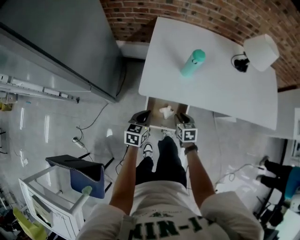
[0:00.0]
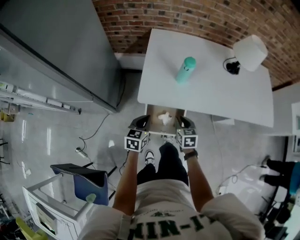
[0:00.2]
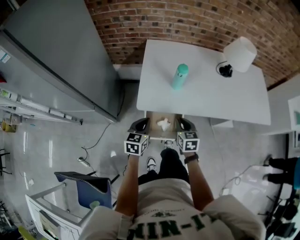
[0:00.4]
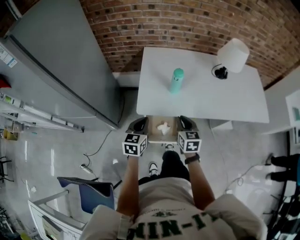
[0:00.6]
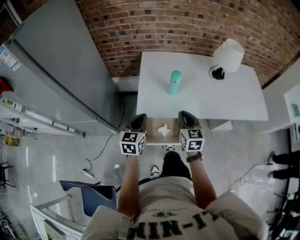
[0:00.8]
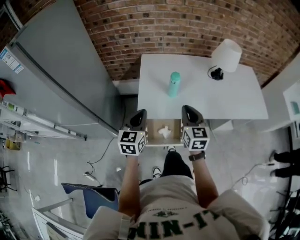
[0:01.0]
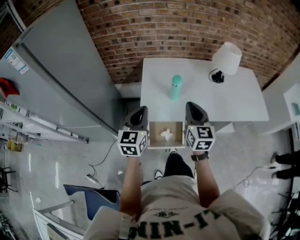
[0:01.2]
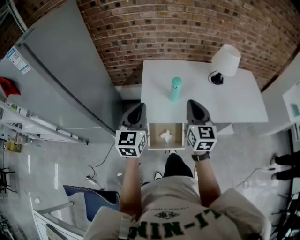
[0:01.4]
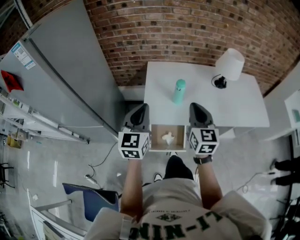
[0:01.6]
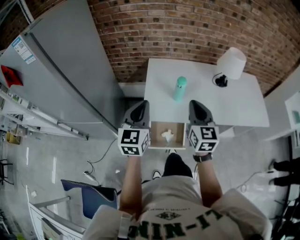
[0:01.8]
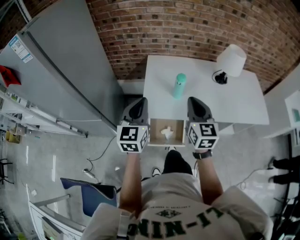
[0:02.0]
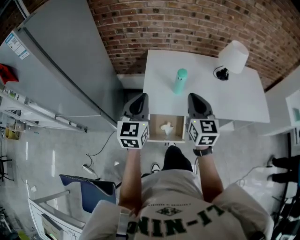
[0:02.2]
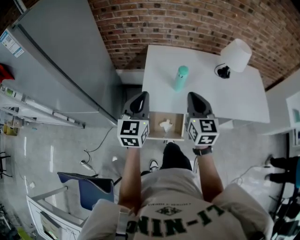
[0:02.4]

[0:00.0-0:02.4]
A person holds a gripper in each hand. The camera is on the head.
0.0 to 1.2 s: Both grippers travel together upward, approximately 35 cm. The left gripper swivels some 30 degrees. The right gripper angles its fingers upward, by roughly 40 degrees, and closes.
1.2 to 2.4 s: The grippers stay close to where they were, moving slightly.

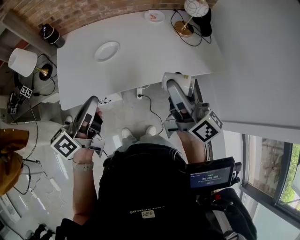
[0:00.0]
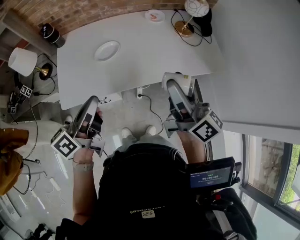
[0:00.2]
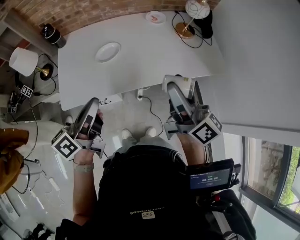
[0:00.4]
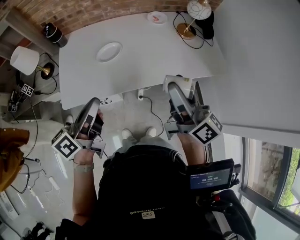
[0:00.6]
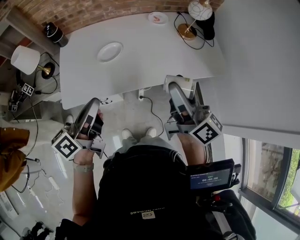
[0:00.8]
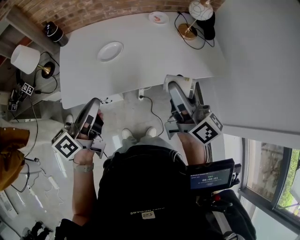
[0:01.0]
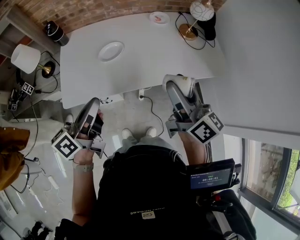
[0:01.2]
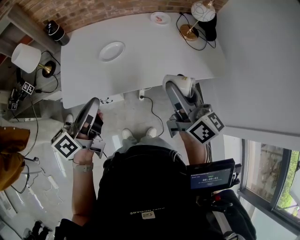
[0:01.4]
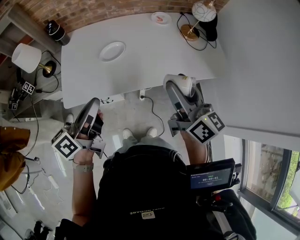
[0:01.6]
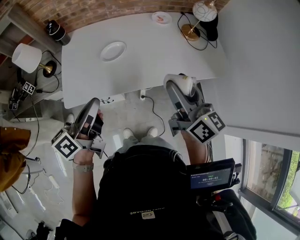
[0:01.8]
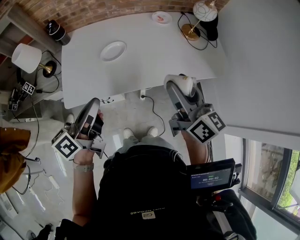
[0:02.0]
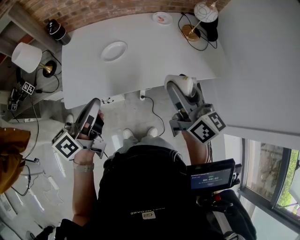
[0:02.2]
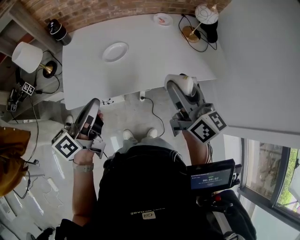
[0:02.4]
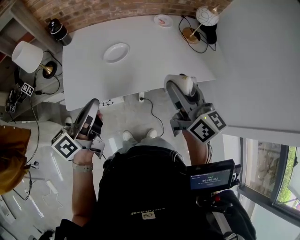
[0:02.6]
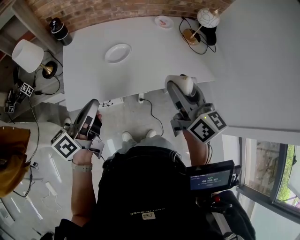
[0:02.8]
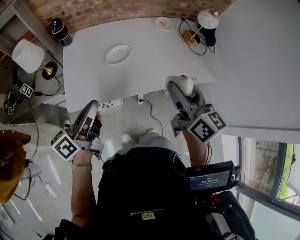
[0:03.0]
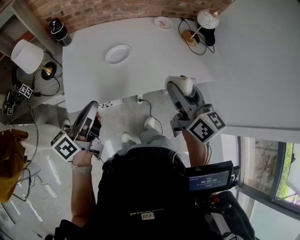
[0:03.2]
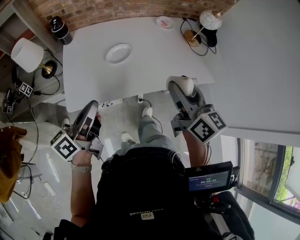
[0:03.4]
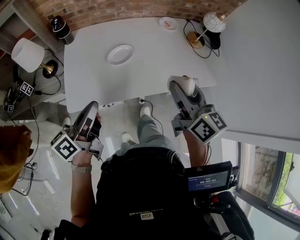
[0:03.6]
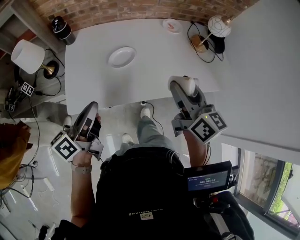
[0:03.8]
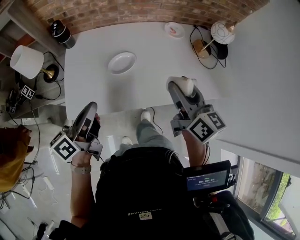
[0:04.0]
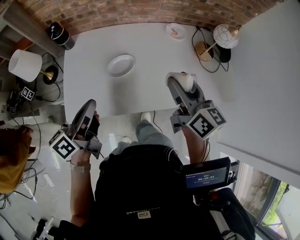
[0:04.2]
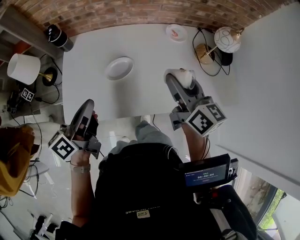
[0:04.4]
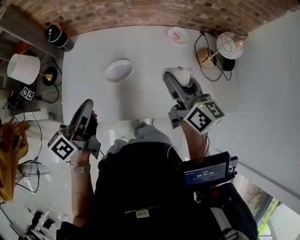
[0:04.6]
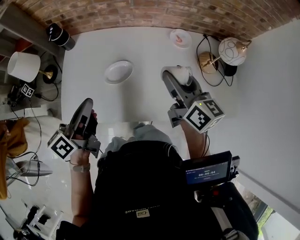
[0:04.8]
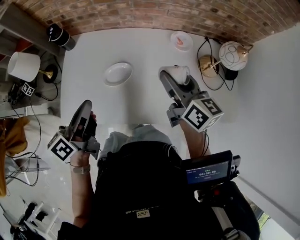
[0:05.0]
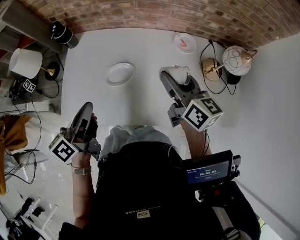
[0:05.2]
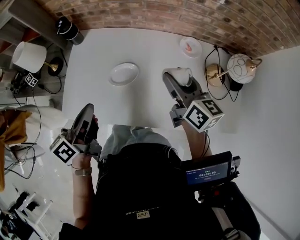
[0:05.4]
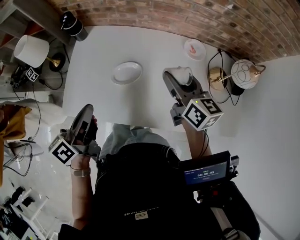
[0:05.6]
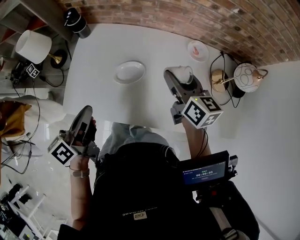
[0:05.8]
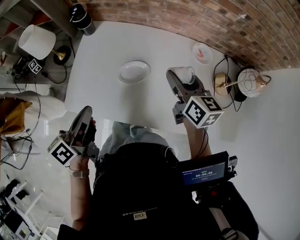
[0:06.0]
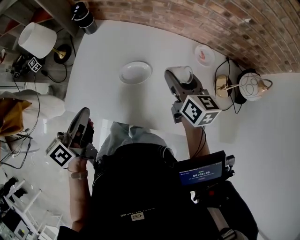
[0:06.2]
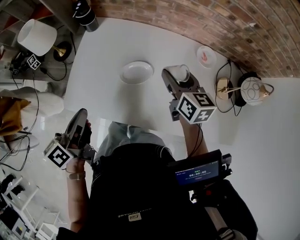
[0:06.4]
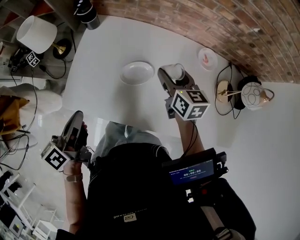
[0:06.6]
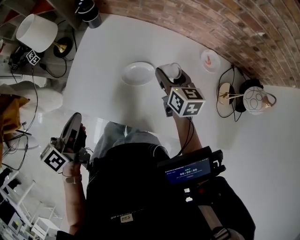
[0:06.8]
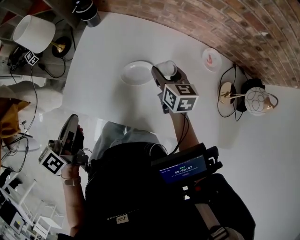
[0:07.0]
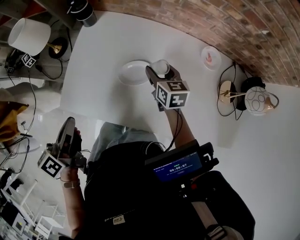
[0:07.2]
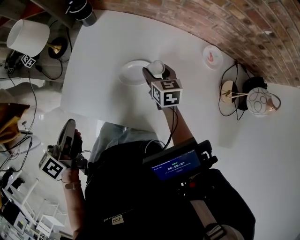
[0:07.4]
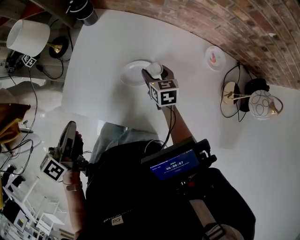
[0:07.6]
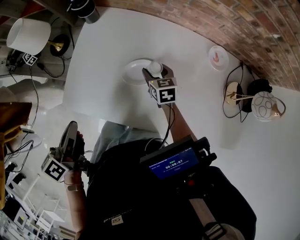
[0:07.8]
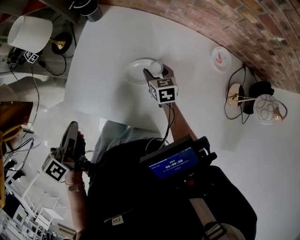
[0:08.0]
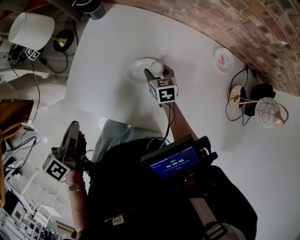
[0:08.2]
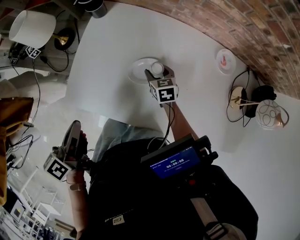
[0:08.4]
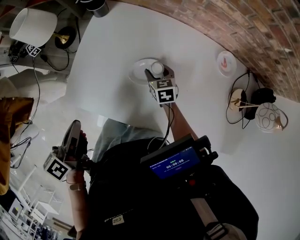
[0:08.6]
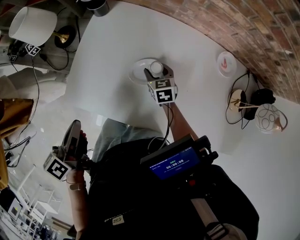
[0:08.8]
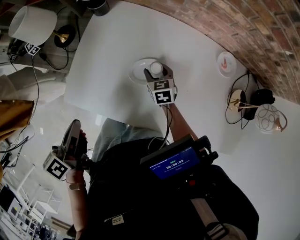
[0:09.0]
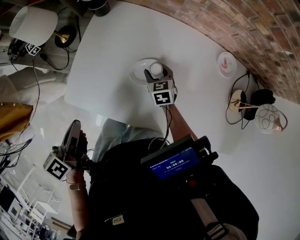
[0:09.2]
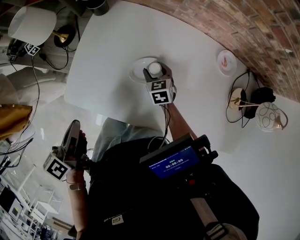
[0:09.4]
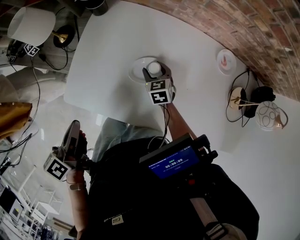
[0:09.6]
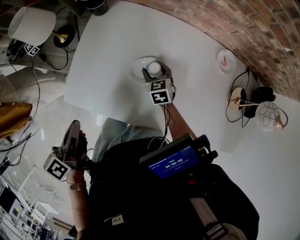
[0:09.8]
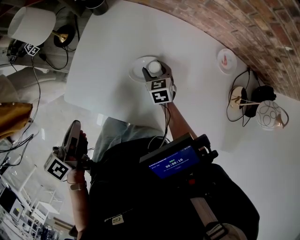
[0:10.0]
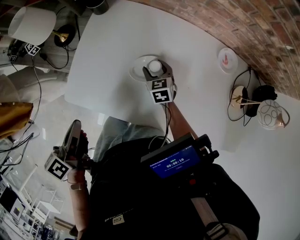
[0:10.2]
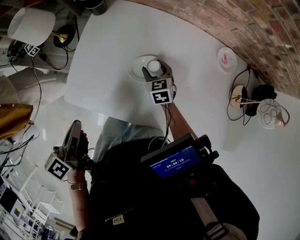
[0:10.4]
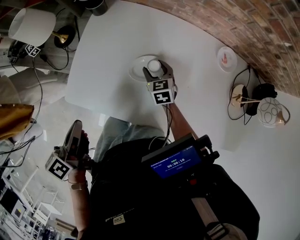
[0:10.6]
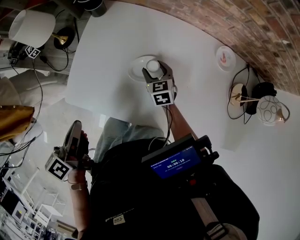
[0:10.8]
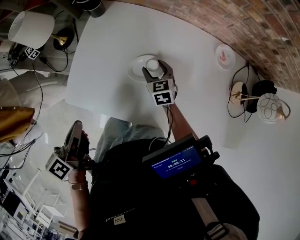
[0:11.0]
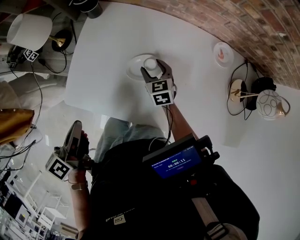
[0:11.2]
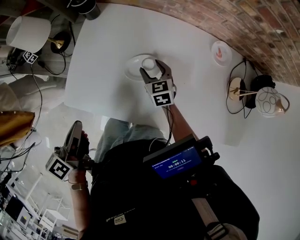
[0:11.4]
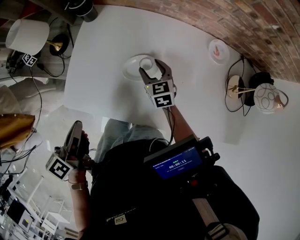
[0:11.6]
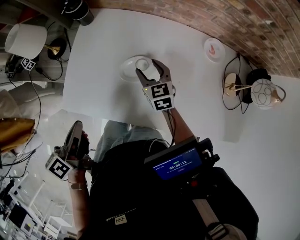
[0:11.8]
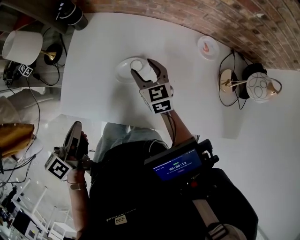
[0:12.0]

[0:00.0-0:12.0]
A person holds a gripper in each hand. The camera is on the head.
0.0 to 1.6 s: There are only small adjustments of the grippers.
1.6 to 3.0 s: Both grippers move to the left, approximately 10 cm.
3.0 to 4.4 s: The two grippers go about 15 cm forward.
4.4 to 6.0 s: The right gripper is displaced forward and downward by approximately 15 cm, and swivels about 20 degrees.
6.0 to 7.6 s: The right gripper heads downward, to the left and forward, covering roughly 25 cm, and swivels about 30 degrees. Meanwhile the left gripper travels to the left by roughly 5 cm.
7.6 to 9.0 s: The right gripper is displaced downward by roughly 5 cm.
9.0 to 10.4 s: There are only small adjustments of the grippers.
10.4 to 12.0 s: The right gripper moves upward, roughly 10 cm.

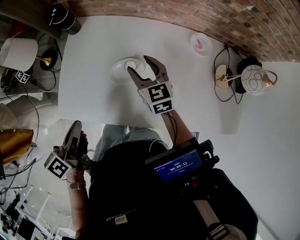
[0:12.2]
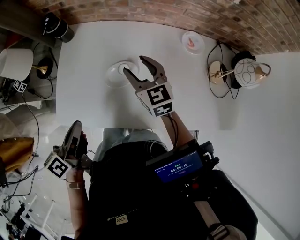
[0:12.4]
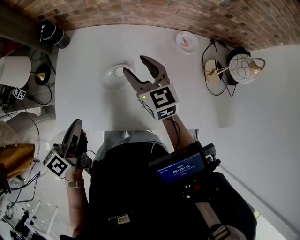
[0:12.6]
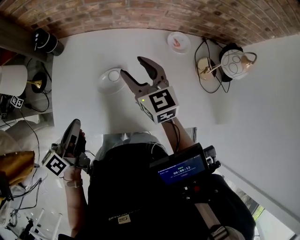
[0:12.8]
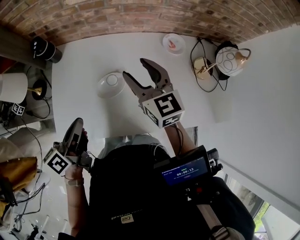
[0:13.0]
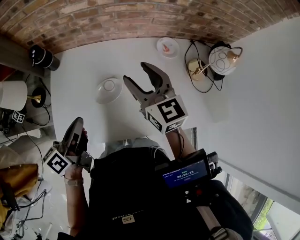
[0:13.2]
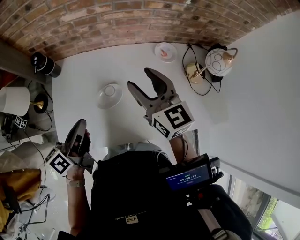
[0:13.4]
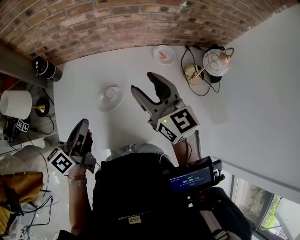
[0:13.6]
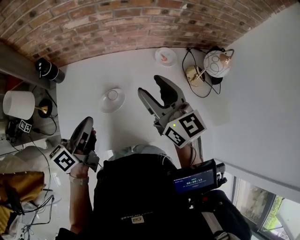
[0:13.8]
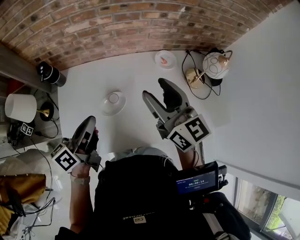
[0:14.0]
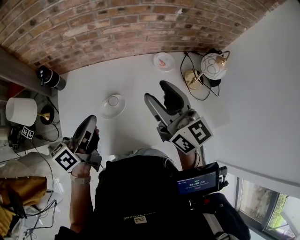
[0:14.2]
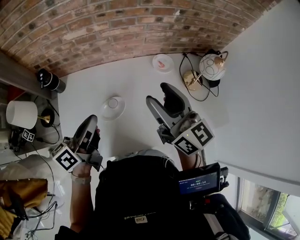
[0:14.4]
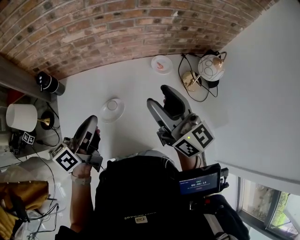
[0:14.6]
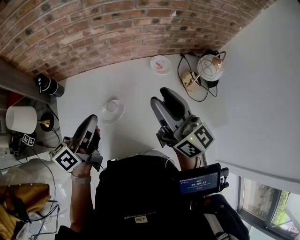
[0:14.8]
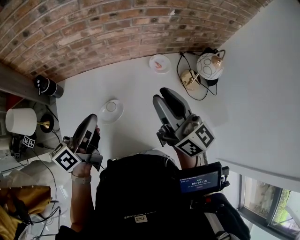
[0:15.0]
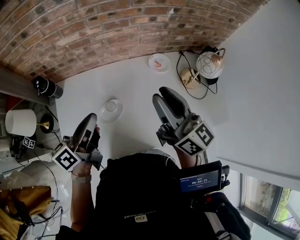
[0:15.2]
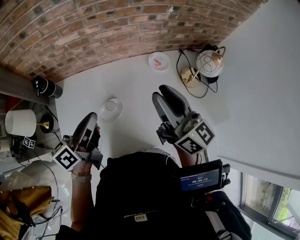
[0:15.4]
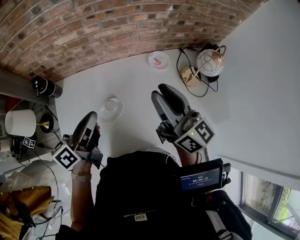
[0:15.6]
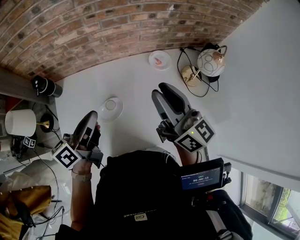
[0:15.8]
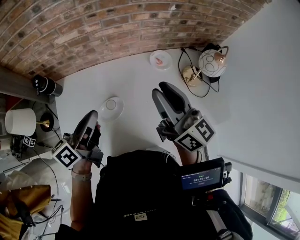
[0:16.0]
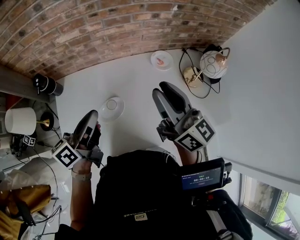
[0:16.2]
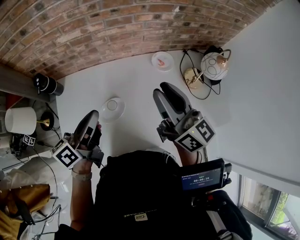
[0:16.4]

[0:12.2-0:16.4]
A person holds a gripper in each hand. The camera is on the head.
12.2 to 13.6 s: The left gripper moves forward, to the right and upward, about 15 cm, and turns by about 20 degrees, while the right gripper goes approximately 20 cm upward and to the right, and rotates approximately 20 degrees.
13.6 to 15.0 s: The right gripper travels to the right and upward by roughly 10 cm, rotates roughly 20 degrees, and closes its fingers; the left gripper ends up some 5 cm from where it was.
15.0 to 16.4 s: The grippers make only small movements.

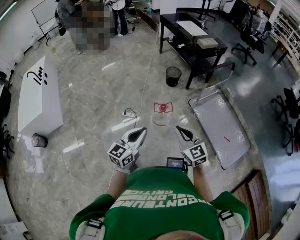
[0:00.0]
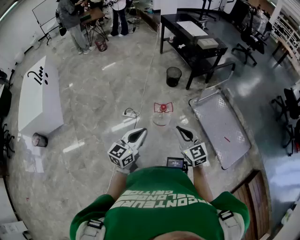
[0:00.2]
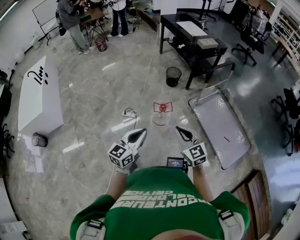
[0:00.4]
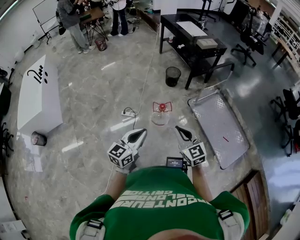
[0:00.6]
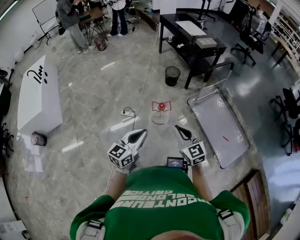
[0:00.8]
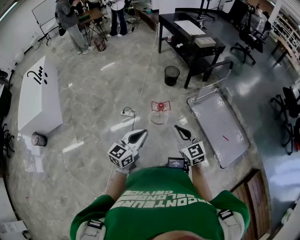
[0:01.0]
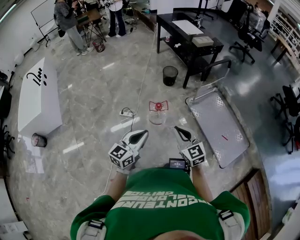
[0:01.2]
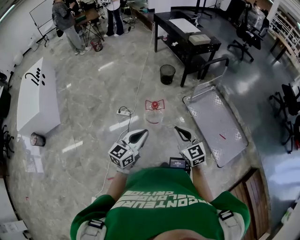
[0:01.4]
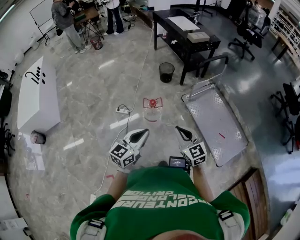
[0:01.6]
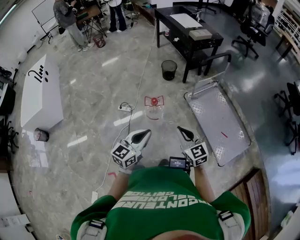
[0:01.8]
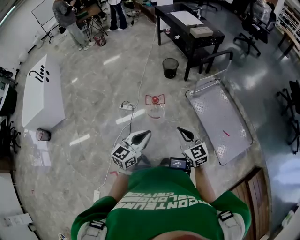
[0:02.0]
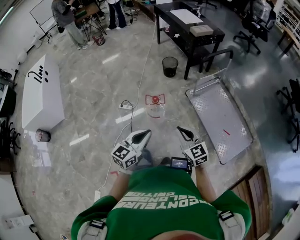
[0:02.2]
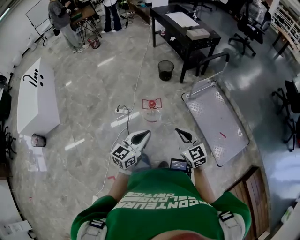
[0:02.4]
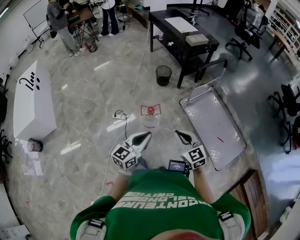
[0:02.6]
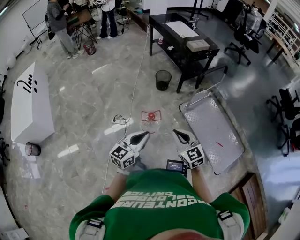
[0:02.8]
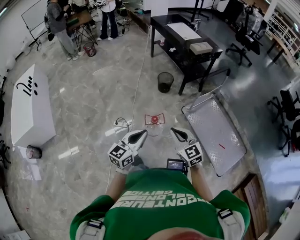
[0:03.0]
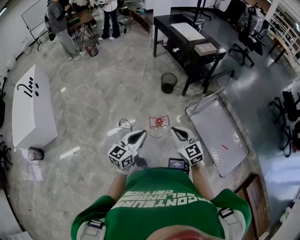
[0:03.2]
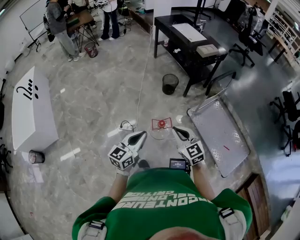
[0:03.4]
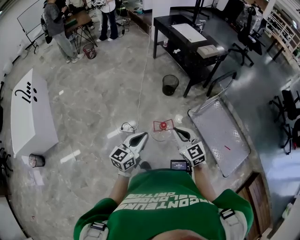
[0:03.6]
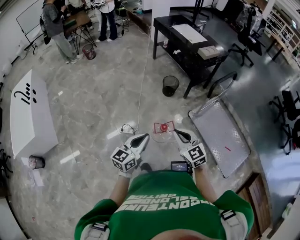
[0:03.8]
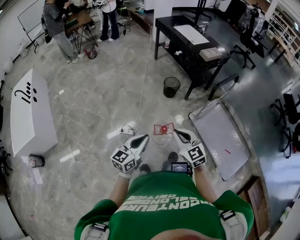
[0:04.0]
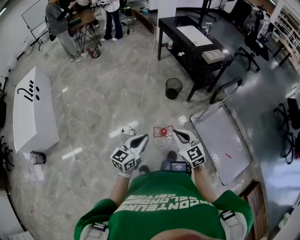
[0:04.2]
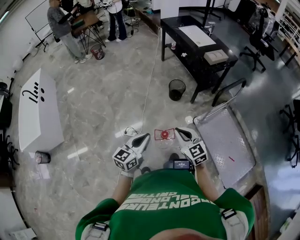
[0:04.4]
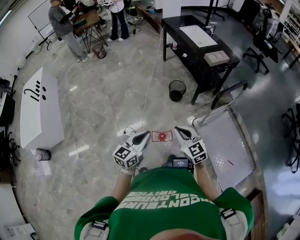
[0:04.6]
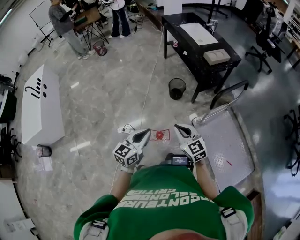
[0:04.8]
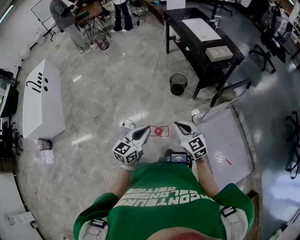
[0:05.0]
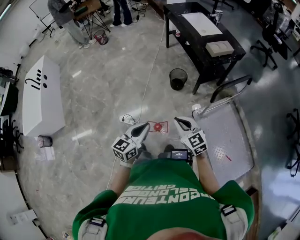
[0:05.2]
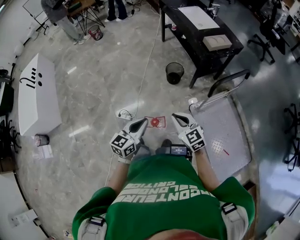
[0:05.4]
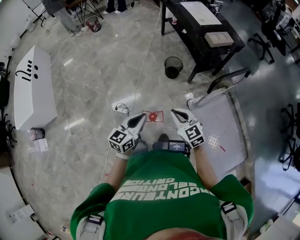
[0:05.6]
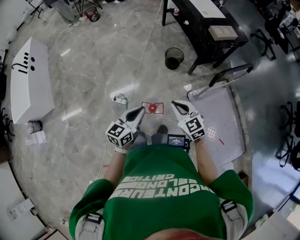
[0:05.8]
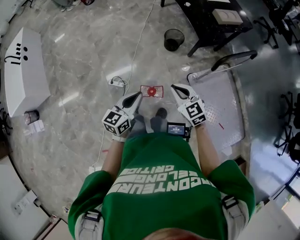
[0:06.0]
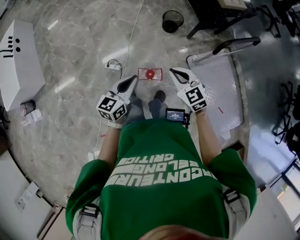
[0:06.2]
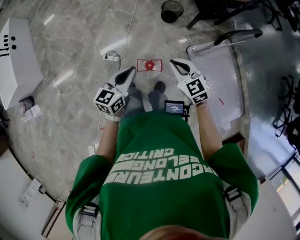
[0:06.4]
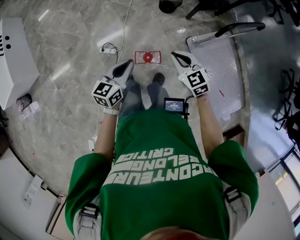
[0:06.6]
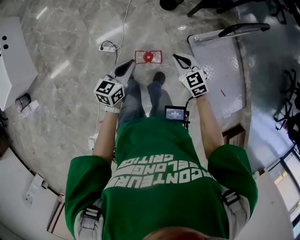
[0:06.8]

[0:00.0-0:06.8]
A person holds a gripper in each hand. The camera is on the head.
0.0 to 1.4 s: Both grippers move to the right, about 10 cm.
1.4 to 2.8 s: Both grippers travel together forward, approximately 10 cm.
2.8 to 4.0 s: The grippers both shift to the left and forward by roughly 15 cm.
4.0 to 5.4 s: Both grippers travel together to the right and forward, about 20 cm.
5.4 to 6.8 s: The right gripper heads downward, covering roughly 15 cm. The left gripper moves downward and to the left, about 15 cm.
